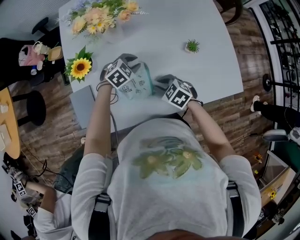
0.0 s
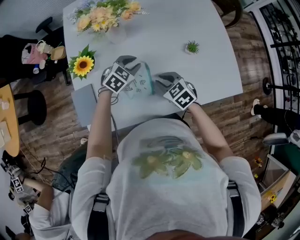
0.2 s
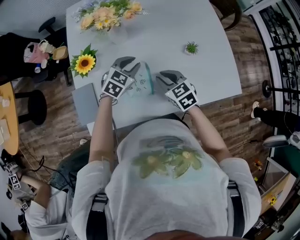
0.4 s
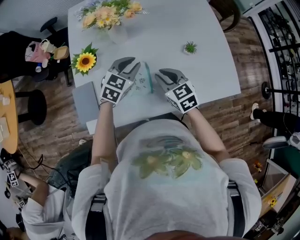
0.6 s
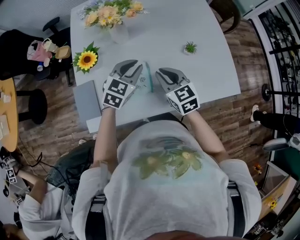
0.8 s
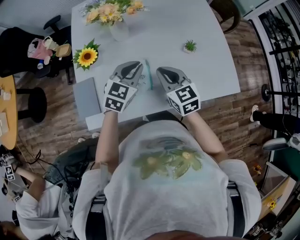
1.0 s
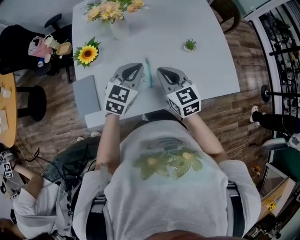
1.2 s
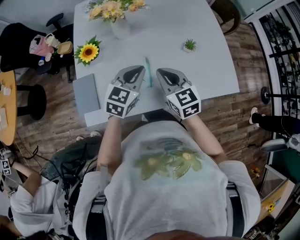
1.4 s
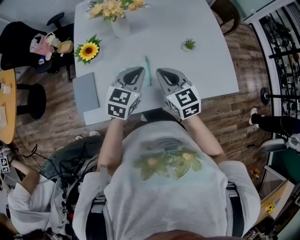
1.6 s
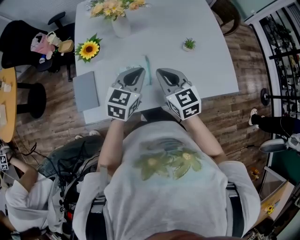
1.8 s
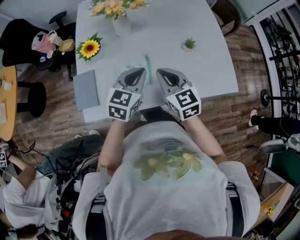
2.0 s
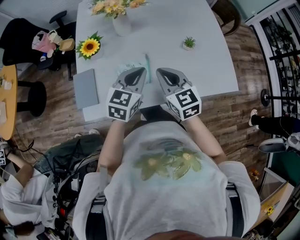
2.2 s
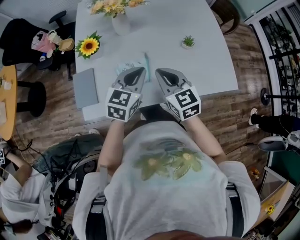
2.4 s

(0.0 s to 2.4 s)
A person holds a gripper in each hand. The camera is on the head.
0.0 s - 1.2 s: The left gripper is displaced upward and backward by roughly 20 cm, changes its angle by some 40 degrees, and closes its fingers. The right gripper moves upward, roughly 15 cm, and tips its fingers upward by some 30 degrees.
1.2 s - 2.4 s: The right gripper ends up roughly 5 cm from where it was. Meanwhile the left gripper shifts roughly 5 cm backward.

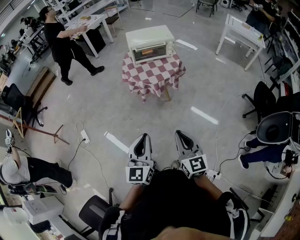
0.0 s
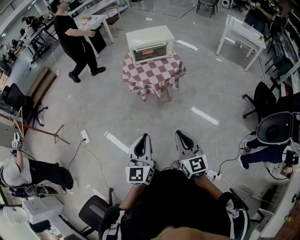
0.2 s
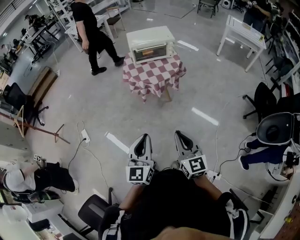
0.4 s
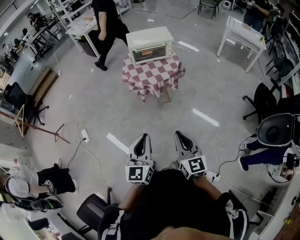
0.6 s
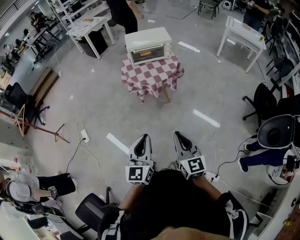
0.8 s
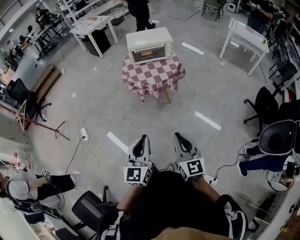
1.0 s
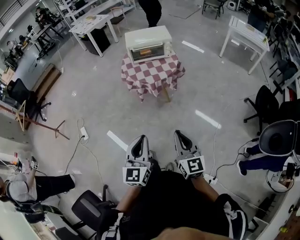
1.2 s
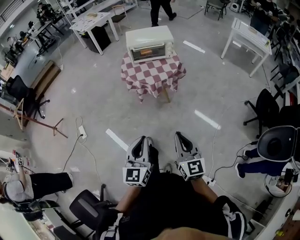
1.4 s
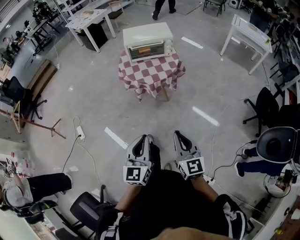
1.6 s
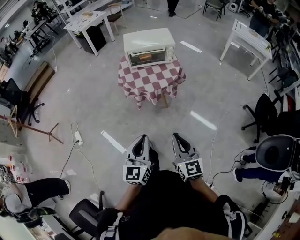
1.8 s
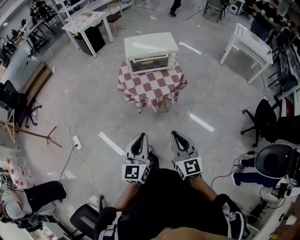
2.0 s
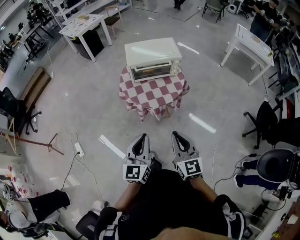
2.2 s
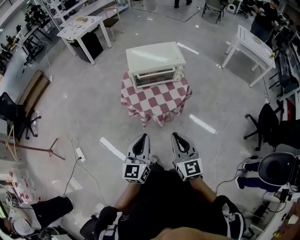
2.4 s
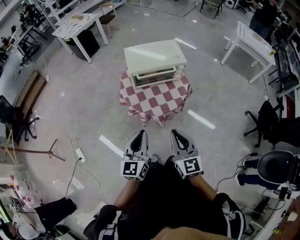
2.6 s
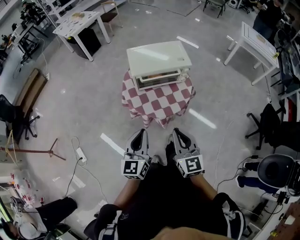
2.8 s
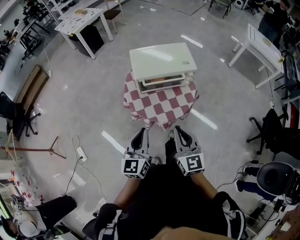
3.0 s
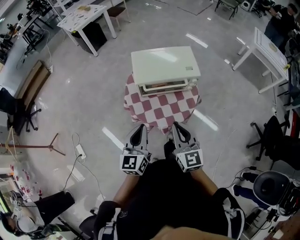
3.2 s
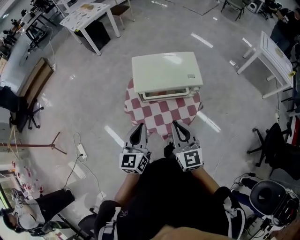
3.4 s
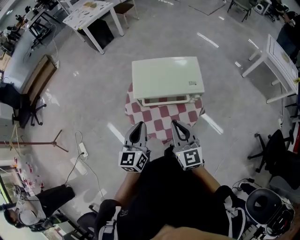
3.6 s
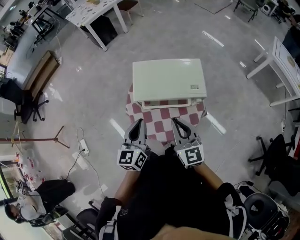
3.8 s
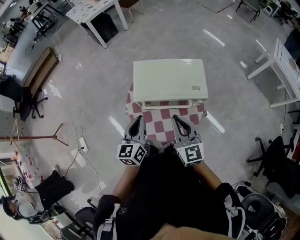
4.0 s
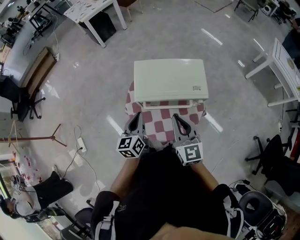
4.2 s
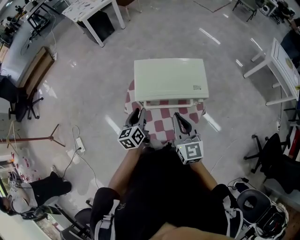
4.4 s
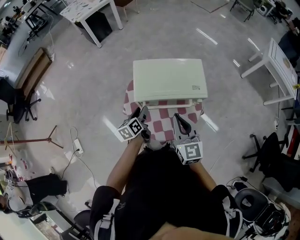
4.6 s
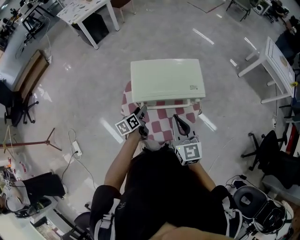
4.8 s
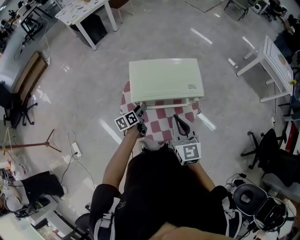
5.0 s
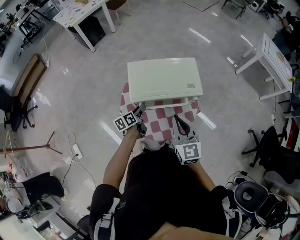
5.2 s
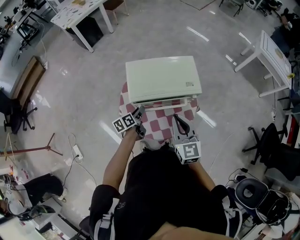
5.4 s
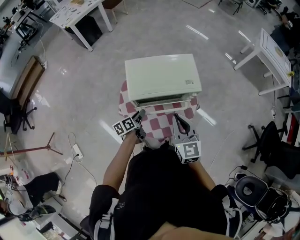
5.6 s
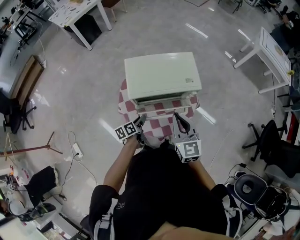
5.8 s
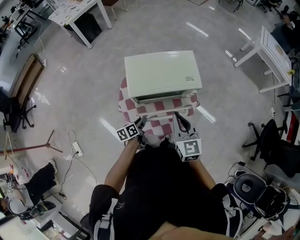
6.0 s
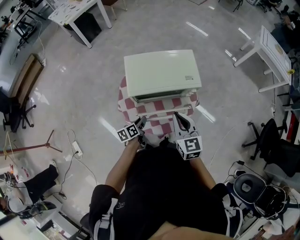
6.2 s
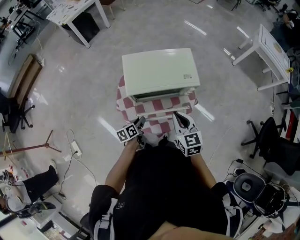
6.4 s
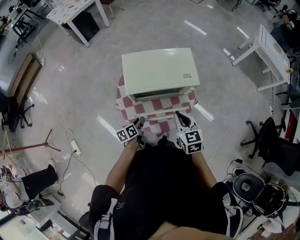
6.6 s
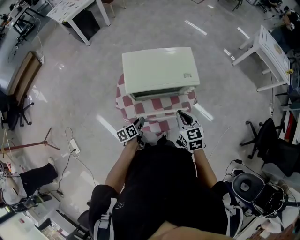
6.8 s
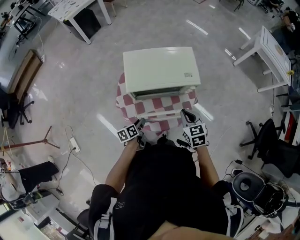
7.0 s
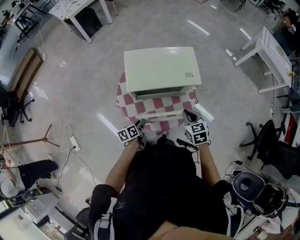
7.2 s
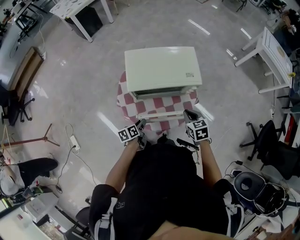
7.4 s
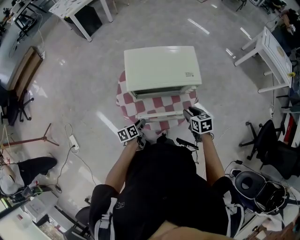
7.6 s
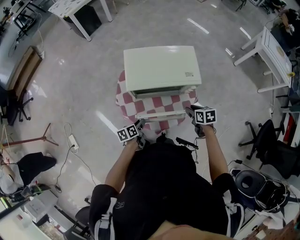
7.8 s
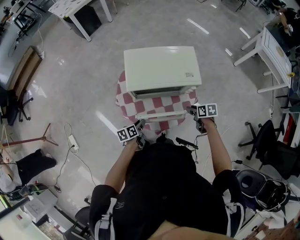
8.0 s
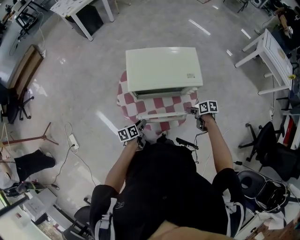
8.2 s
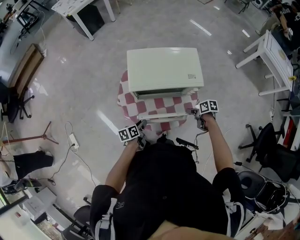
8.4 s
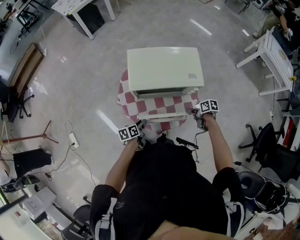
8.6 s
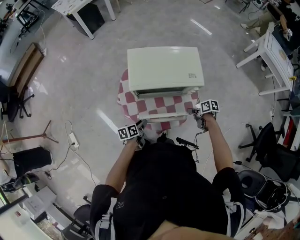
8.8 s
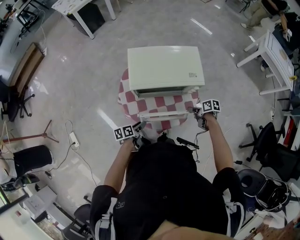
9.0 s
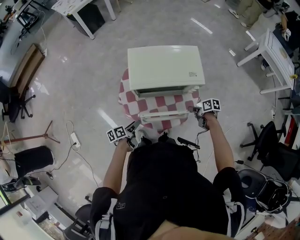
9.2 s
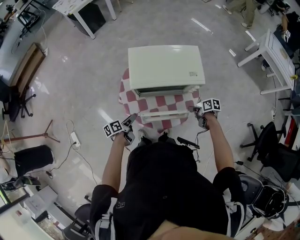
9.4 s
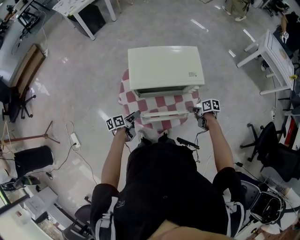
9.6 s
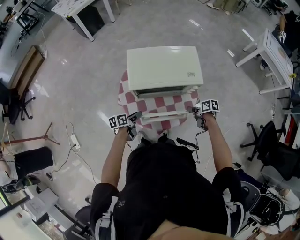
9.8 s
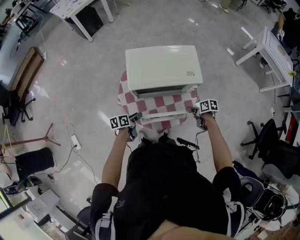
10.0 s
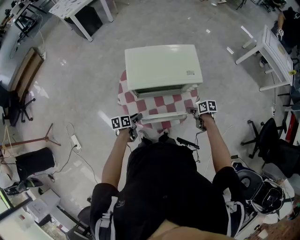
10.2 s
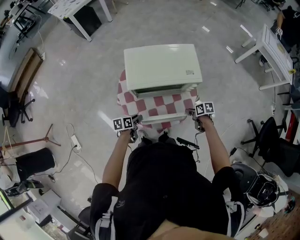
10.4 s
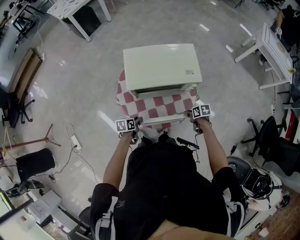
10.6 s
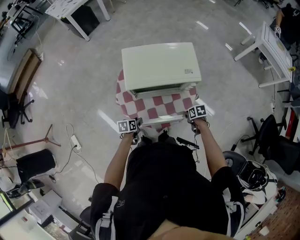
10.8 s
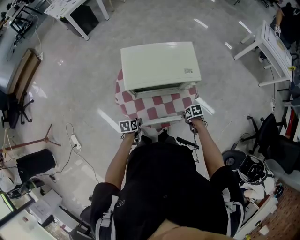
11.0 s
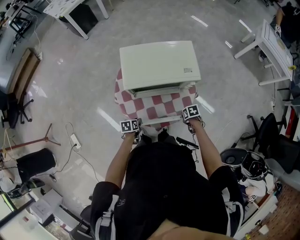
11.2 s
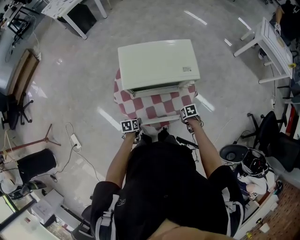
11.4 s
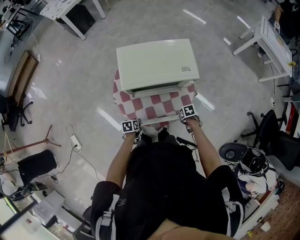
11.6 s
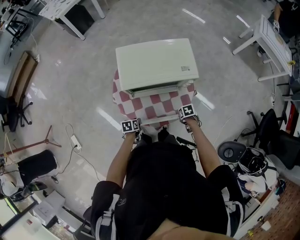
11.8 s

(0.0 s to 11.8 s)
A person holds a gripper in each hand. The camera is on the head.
0.0 s - 1.4 s: The grippers both shift to the right by some 10 cm.
1.4 s - 3.0 s: The two grippers travel together, forward, roughly 50 cm.
3.0 s - 4.4 s: The grippers both shift forward by about 25 cm. The left gripper swivels approximately 30 degrees, and opens.
4.4 s - 6.0 s: The left gripper travels downward by some 15 cm, and rotates some 30 degrees.
6.0 s - 7.4 s: The right gripper shifts approximately 15 cm downward and to the right, and tips its fingers downward by approximately 30 degrees, while the left gripper ends up some 5 cm from where it was.
7.4 s - 8.8 s: The right gripper goes approximately 15 cm downward and to the right, and twists approximately 40 degrees clockwise, seen from behind.
10.4 s - 11.8 s: The grippers both shift downward by some 10 cm. The right gripper rotates some 20 degrees.

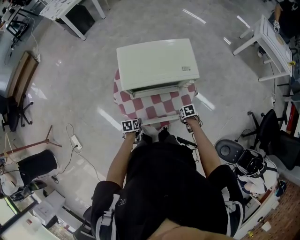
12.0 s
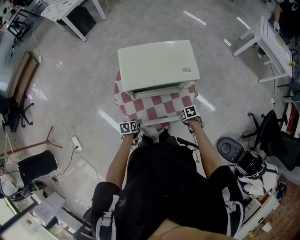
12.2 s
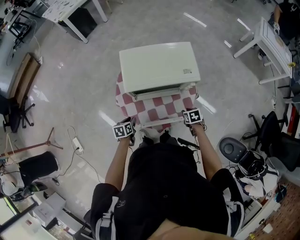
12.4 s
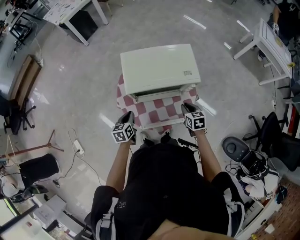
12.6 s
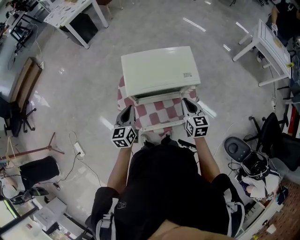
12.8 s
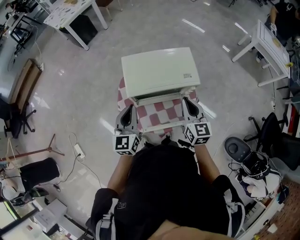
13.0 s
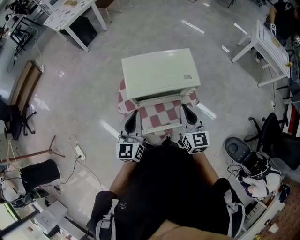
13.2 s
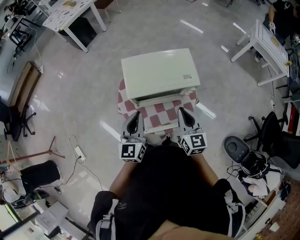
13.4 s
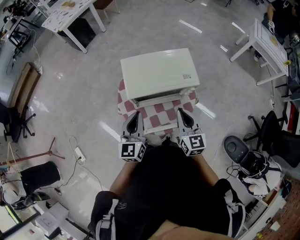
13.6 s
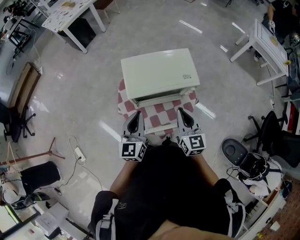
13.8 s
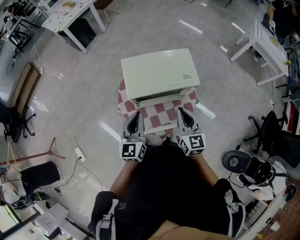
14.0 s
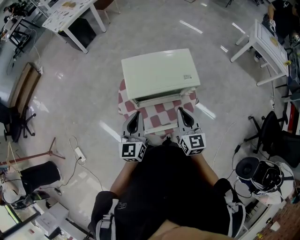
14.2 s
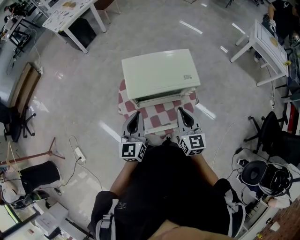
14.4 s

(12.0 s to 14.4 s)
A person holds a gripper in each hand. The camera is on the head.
12.0 s - 13.2 s: Both grippers move upward, about 40 cm. The right gripper tips its fingers upward by approximately 60 degrees. Meanwhile the left gripper tips its fingers upward by approximately 60 degrees, and closes.
13.2 s - 14.4 s: There are only small adjustments of the grippers.

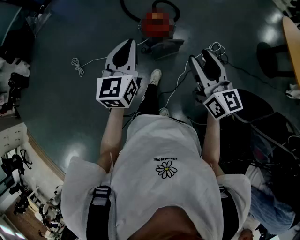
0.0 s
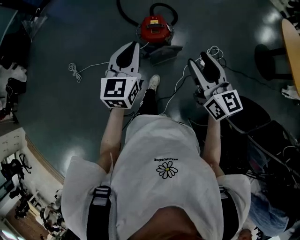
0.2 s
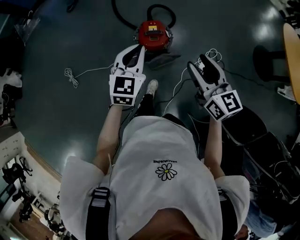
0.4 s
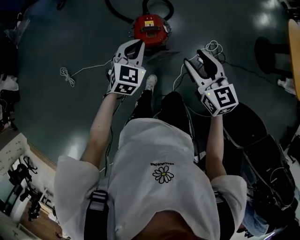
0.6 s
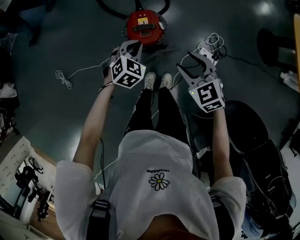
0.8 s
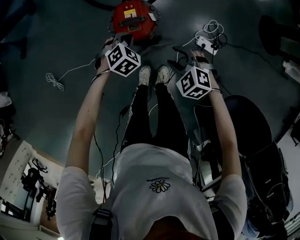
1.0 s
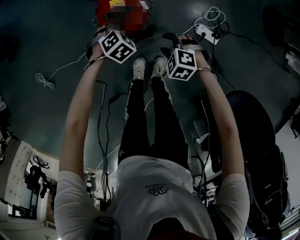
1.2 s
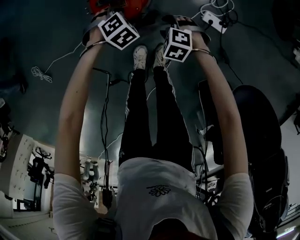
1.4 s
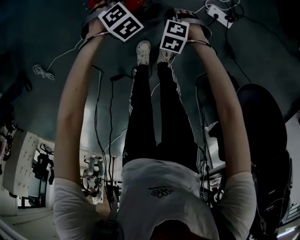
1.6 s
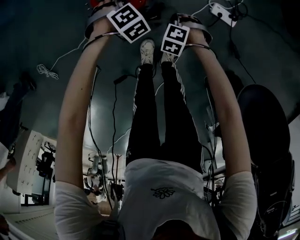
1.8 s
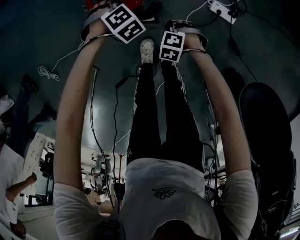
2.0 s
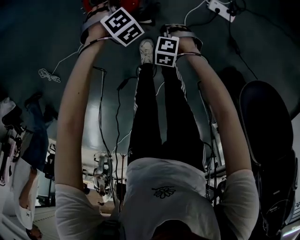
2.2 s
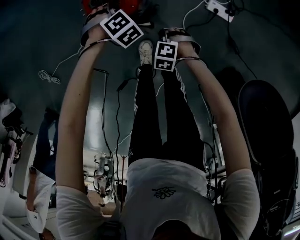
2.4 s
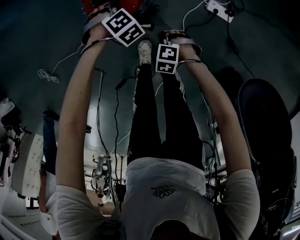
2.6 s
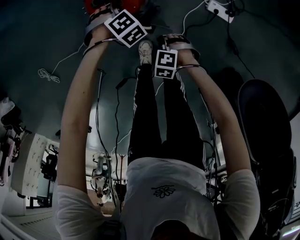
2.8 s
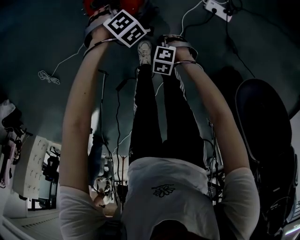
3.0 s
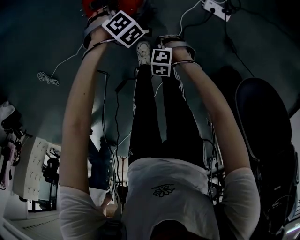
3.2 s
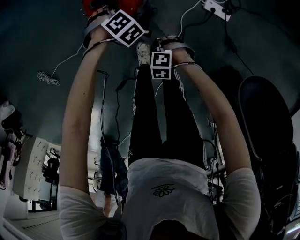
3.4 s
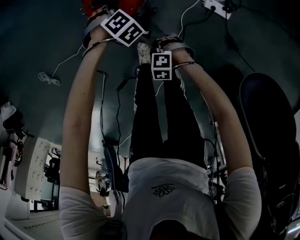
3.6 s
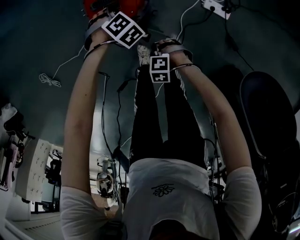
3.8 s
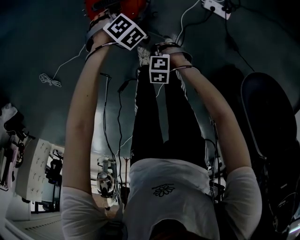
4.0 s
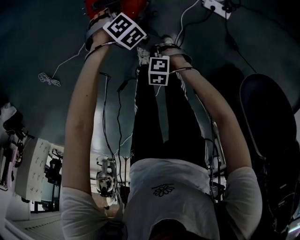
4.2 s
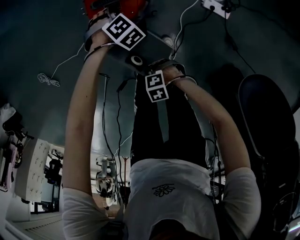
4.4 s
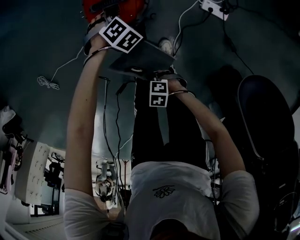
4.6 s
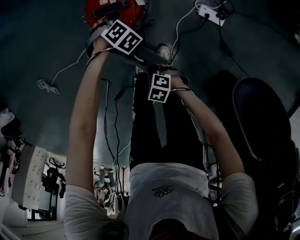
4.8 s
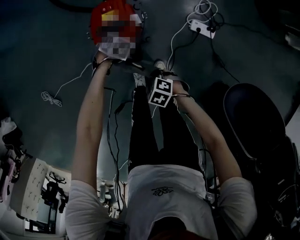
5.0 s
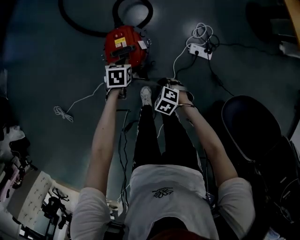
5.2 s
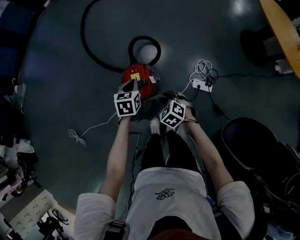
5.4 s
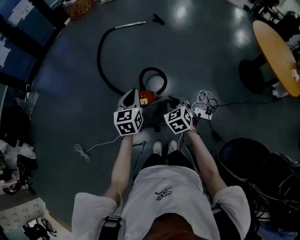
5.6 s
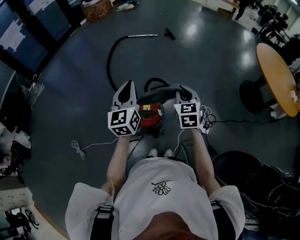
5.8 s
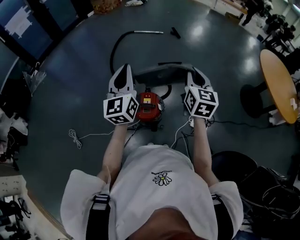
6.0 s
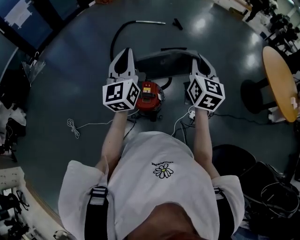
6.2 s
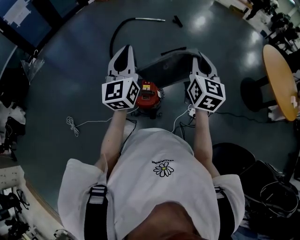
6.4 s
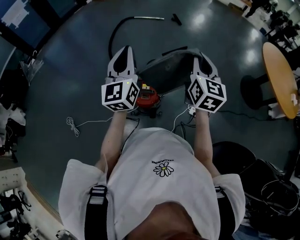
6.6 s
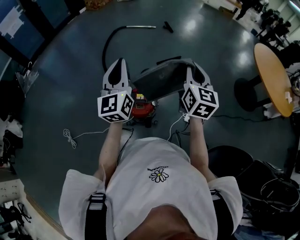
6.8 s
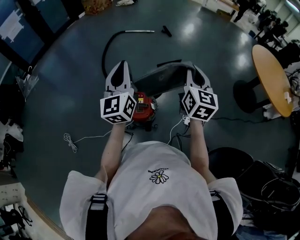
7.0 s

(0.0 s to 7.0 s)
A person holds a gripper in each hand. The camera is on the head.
0.0 s - 1.4 s: Both grippers move downward, some 60 cm. The right gripper tilts its fingers roughly 70 degrees downward. Meanwhile the left gripper tilts its fingers about 60 degrees downward.
1.4 s - 2.8 s: The right gripper shifts by some 10 cm, and closes its fingers.
2.8 s - 4.2 s: The right gripper moves roughly 5 cm.
4.2 s - 5.6 s: Both grippers travel together upward, roughly 50 cm. The left gripper tilts its fingers approximately 50 degrees upward. The right gripper angles its fingers upward, by about 40 degrees.
5.6 s - 7.0 s: Both grippers move upward, roughly 25 cm. The right gripper points its fingers some 40 degrees further upward. The left gripper tips its fingers upward by about 30 degrees.
